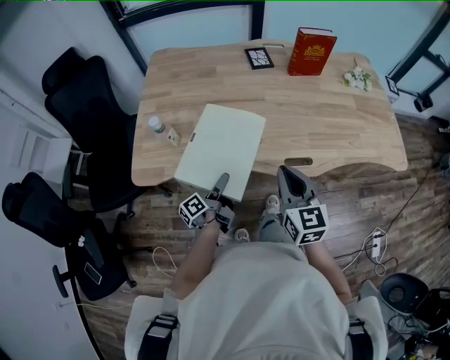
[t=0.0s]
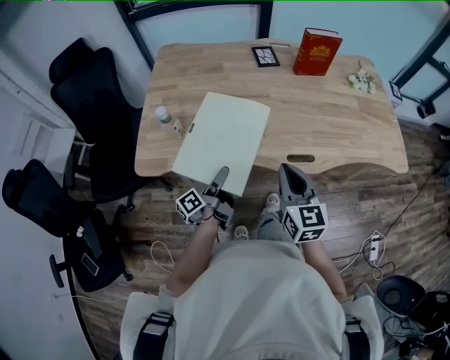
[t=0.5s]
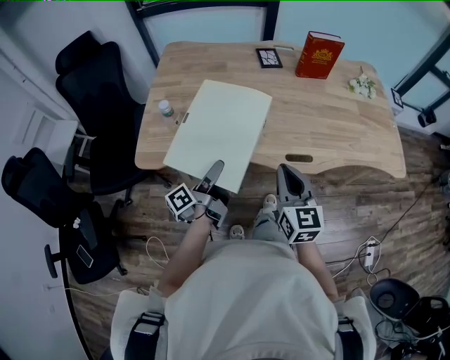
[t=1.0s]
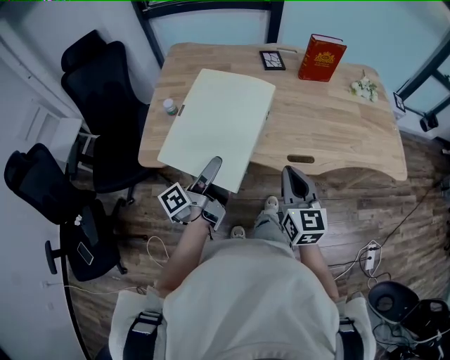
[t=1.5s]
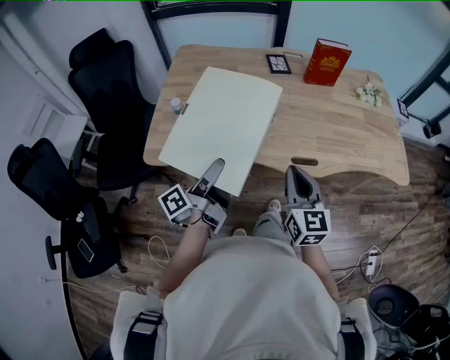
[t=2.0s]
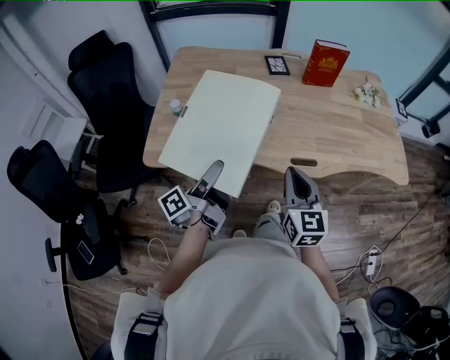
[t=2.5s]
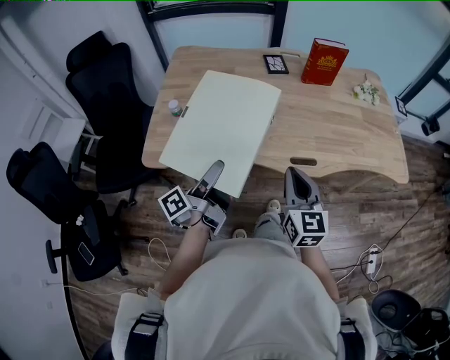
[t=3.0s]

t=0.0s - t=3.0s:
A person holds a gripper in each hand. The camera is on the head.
t=0.0s - t=1.5s: The left gripper heads upward, covering about 15 cm.
t=1.5s - t=3.0s: There are only small adjustments of the grippers.

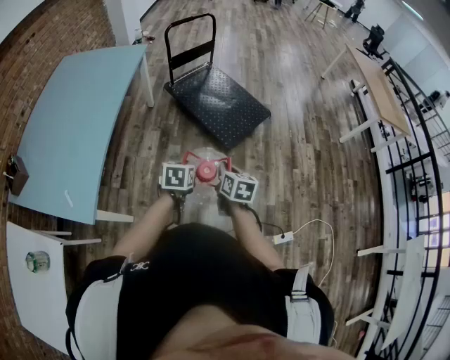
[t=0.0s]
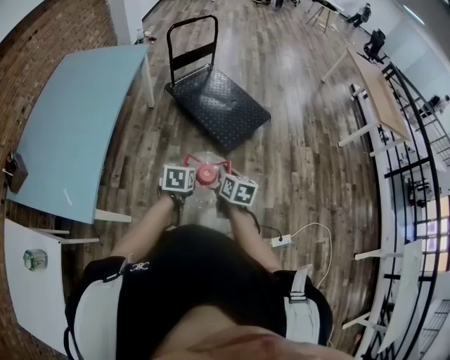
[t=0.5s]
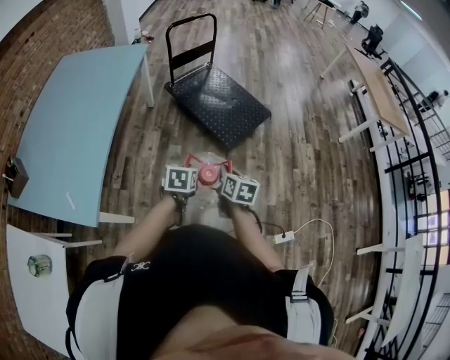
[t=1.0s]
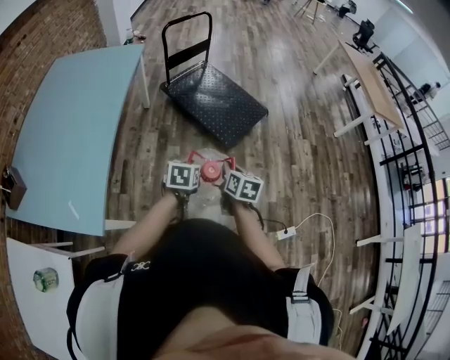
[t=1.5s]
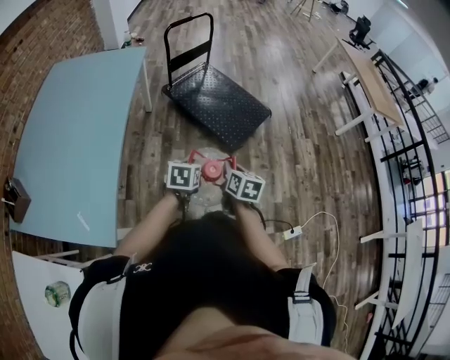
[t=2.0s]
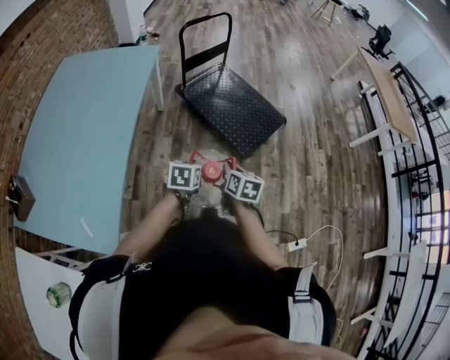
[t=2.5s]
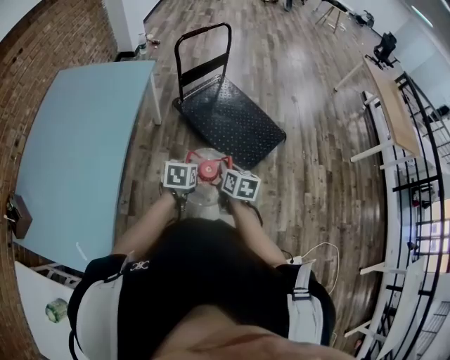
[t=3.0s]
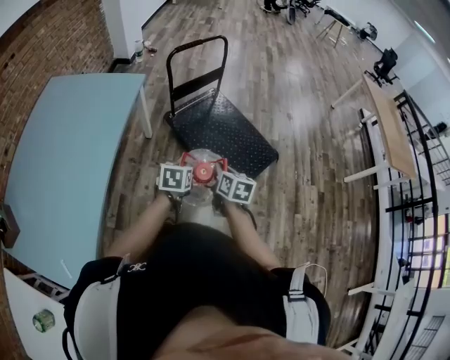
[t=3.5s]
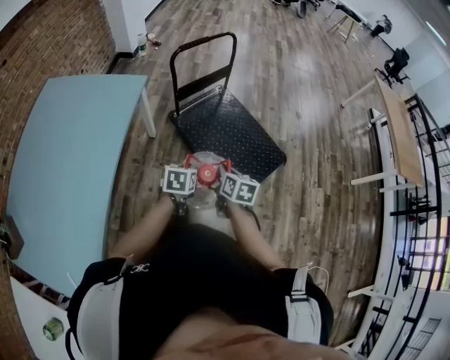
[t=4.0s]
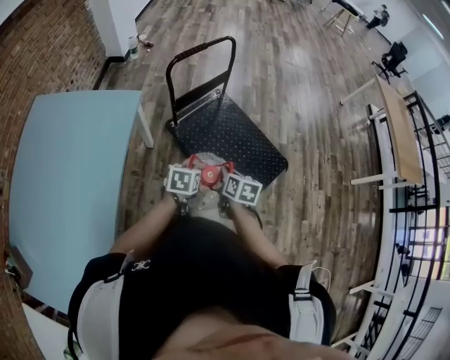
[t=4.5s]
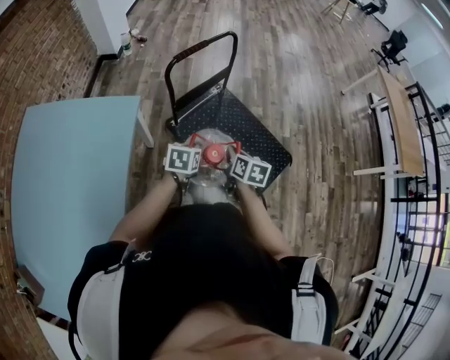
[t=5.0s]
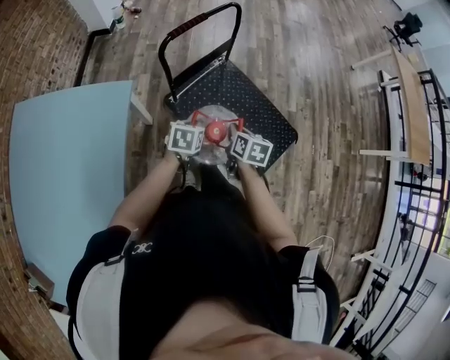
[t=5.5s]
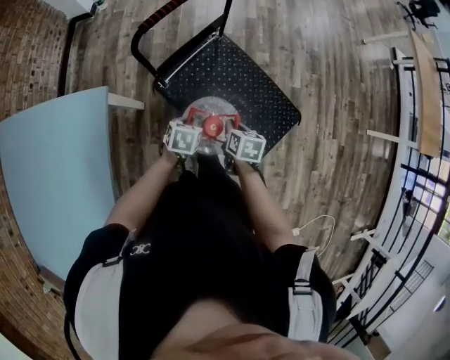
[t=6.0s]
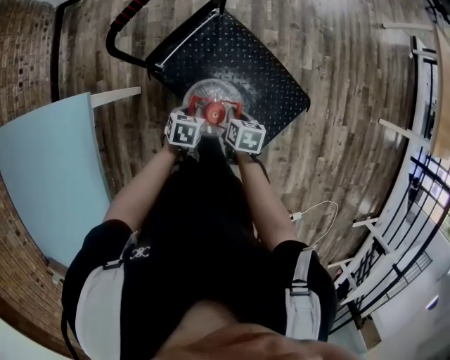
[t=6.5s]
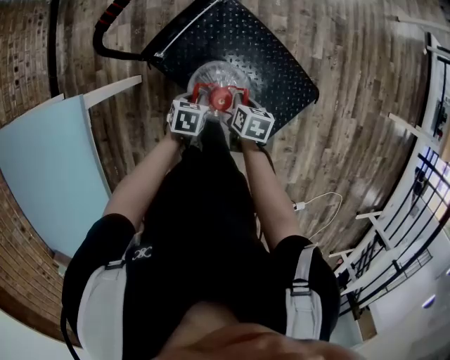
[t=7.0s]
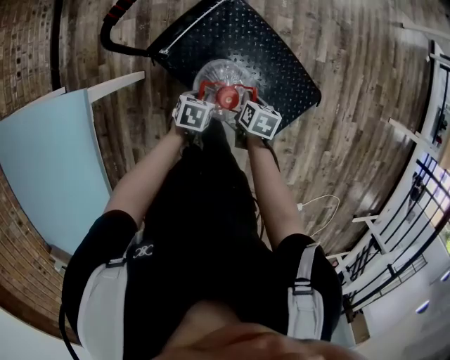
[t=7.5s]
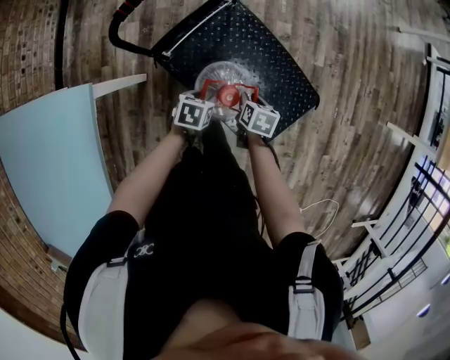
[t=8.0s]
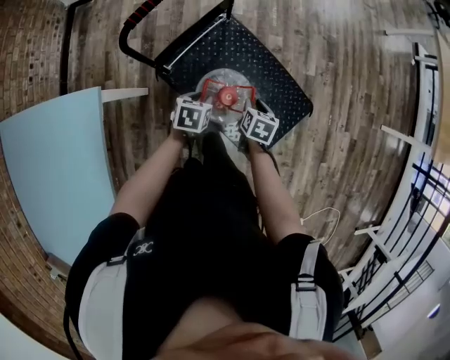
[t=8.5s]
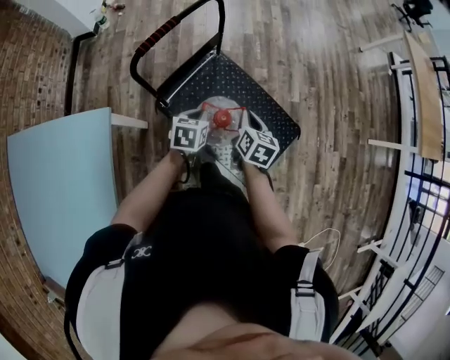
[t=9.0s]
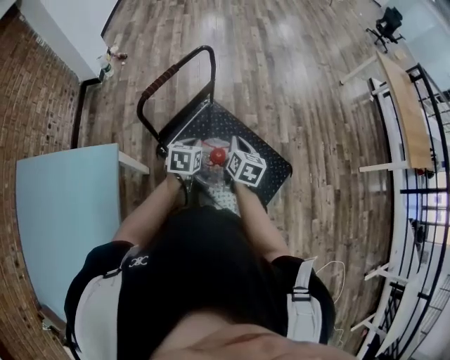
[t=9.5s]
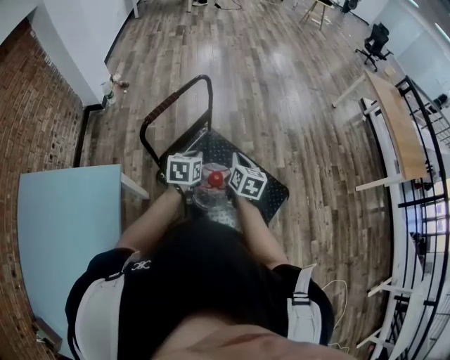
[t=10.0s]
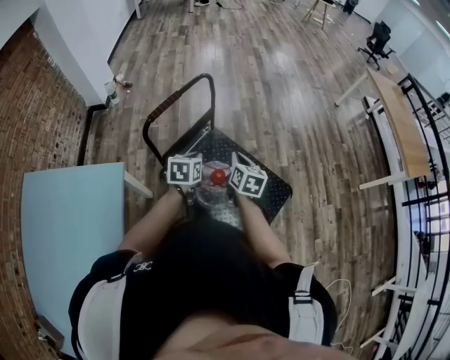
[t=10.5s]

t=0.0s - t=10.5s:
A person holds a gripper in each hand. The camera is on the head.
t=0.0s - t=2.0s: Both grippers move to the left, approximately 5 cm.
t=2.0s - t=4.0s: The grippers both shift forward by about 35 cm.
t=4.0s - t=6.5s: The grippers both shift forward and downward by some 35 cm. The right gripper rotates about 20 degrees. The left gripper rotates about 20 degrees.
t=6.5s - t=8.5s: The left gripper moves about 5 cm; the right gripper changes place by roughly 5 cm, and opens up.
t=8.5s - t=10.5s: Both grippers travel together upward, approximately 20 cm. The left gripper rotates some 20 degrees, and closes its fingers, while the right gripper swivels about 30 degrees, and closes.

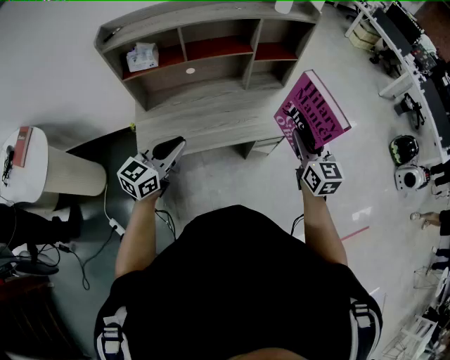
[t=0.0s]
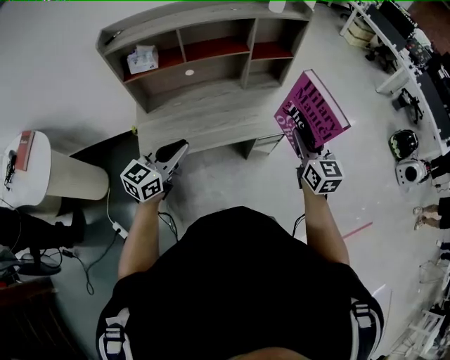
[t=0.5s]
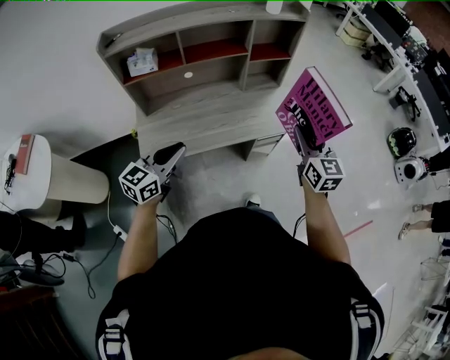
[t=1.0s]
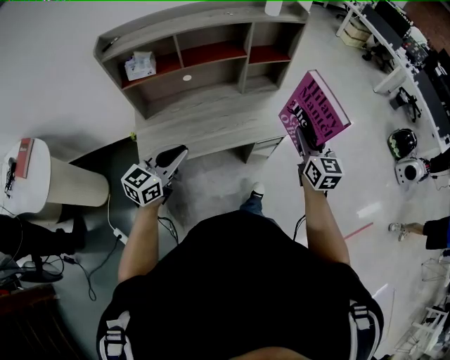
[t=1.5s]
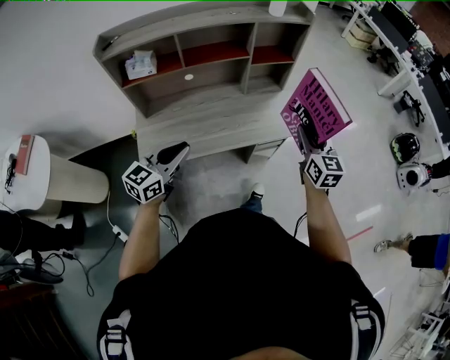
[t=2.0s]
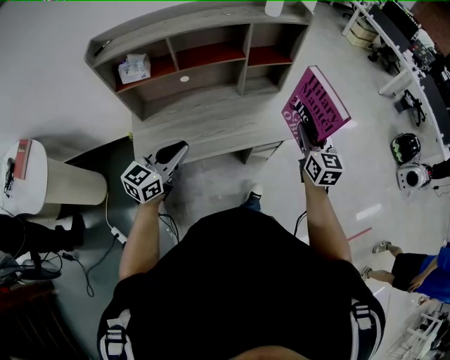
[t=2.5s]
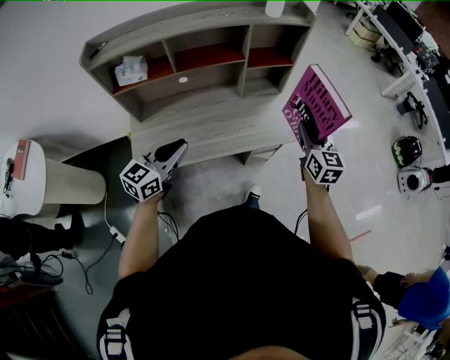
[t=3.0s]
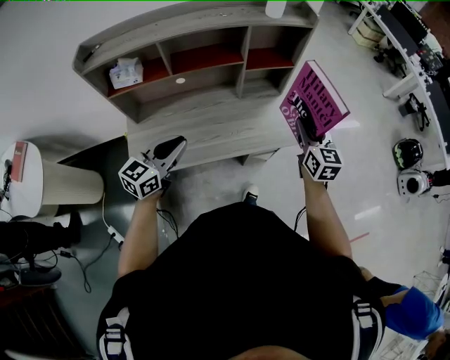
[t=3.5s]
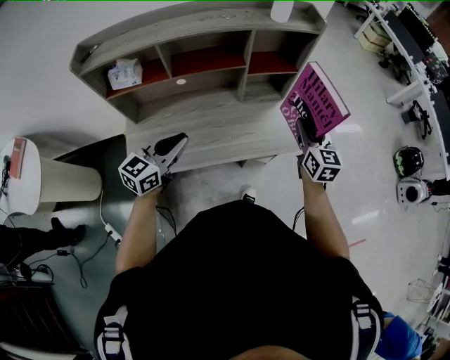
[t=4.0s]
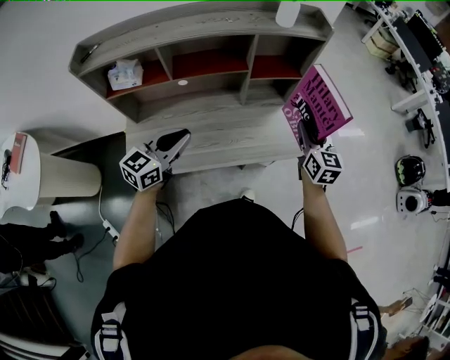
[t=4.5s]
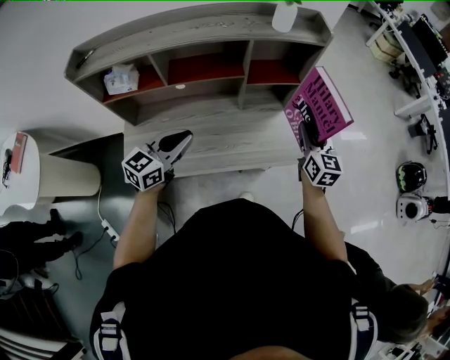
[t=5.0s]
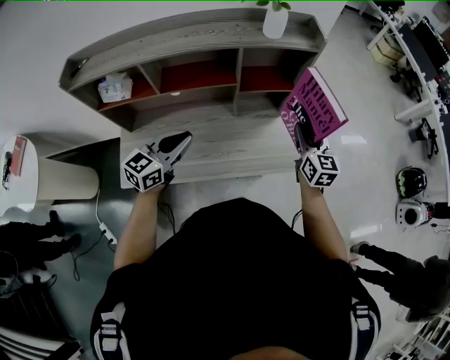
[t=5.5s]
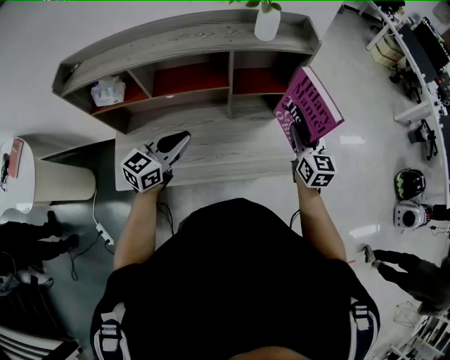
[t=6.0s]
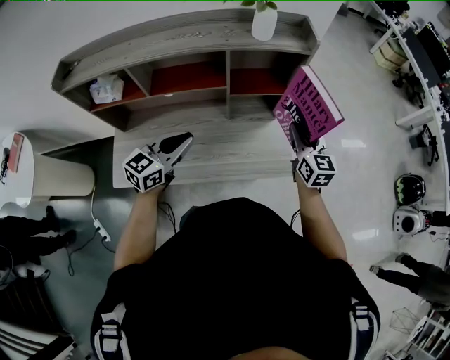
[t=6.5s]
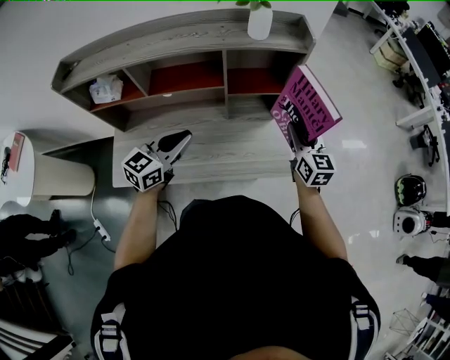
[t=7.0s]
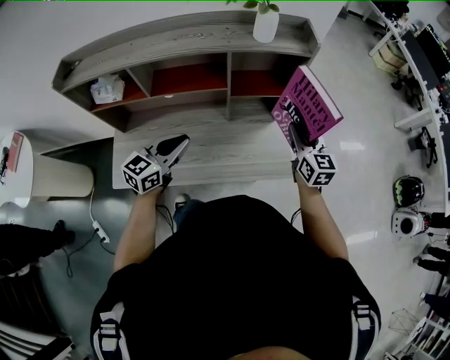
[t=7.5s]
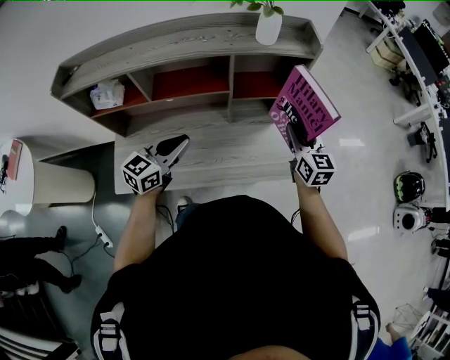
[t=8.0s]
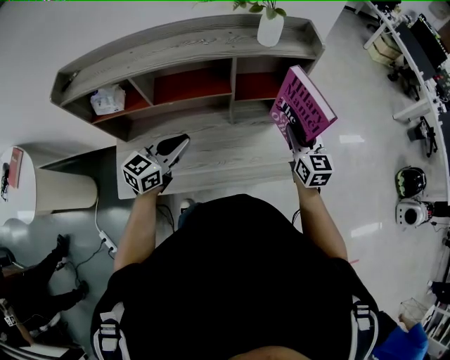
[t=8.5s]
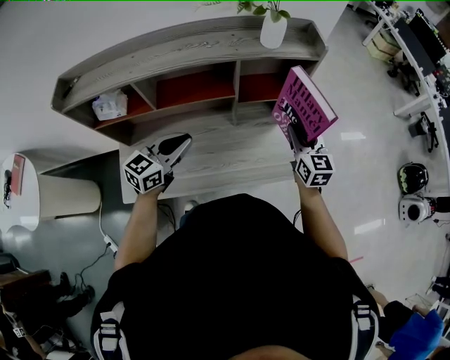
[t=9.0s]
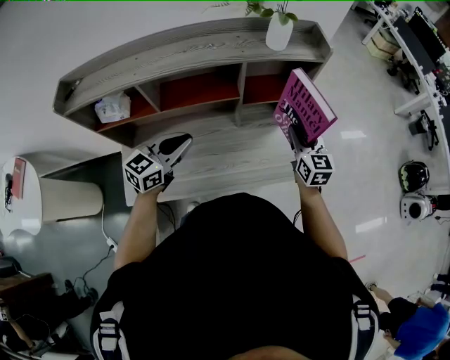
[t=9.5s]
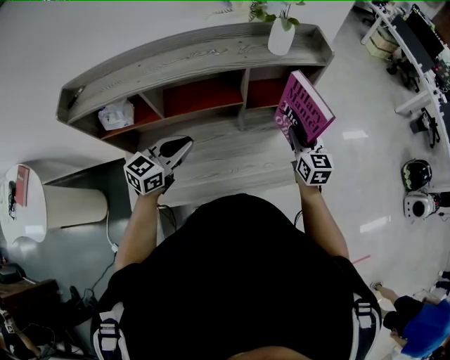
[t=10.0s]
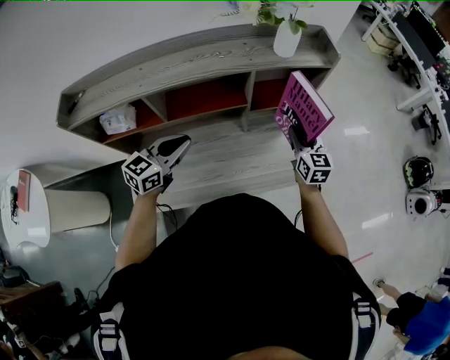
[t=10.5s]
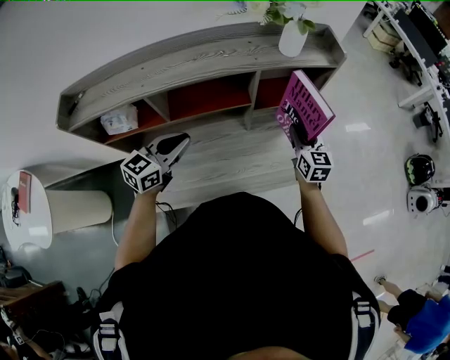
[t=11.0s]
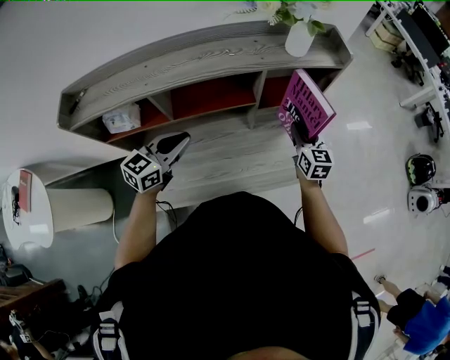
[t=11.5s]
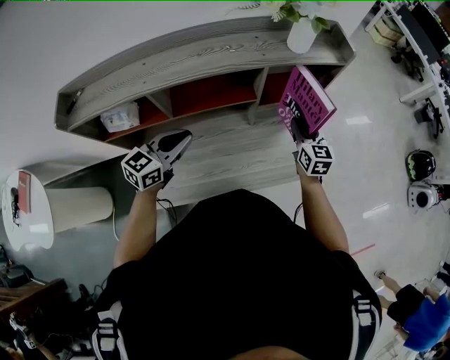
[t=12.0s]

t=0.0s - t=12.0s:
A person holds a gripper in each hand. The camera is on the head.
t=0.0s - t=2.0s: The grippers stay close to where they were, moving slightly.
t=2.0s - t=4.0s: Both grippers move forward, approximately 15 cm.
t=4.0s - t=6.0s: The left gripper shifts about 15 cm forward and to the right. Meanwhile the right gripper travels forward by about 15 cm.
t=6.0s - t=8.0s: There are only small adjustments of the grippers.
t=8.0s - t=10.0s: The right gripper shifts by roughly 5 cm. Meanwhile the left gripper goes approximately 5 cm to the left.
t=10.0s - t=12.0s: The left gripper travels to the left by some 5 cm, while the right gripper ends up about 5 cm from where it was.

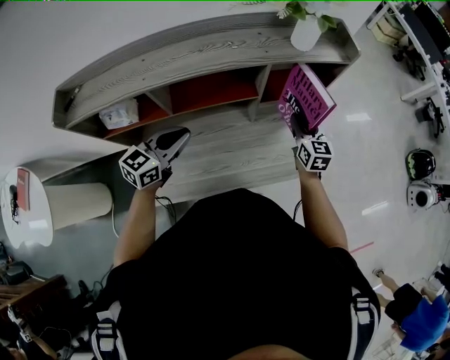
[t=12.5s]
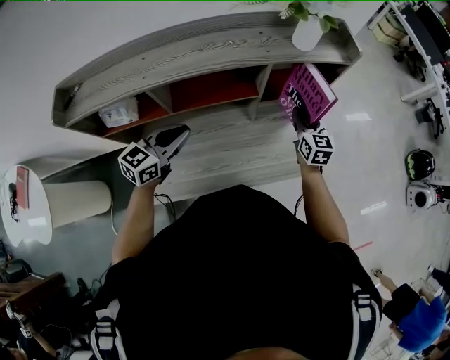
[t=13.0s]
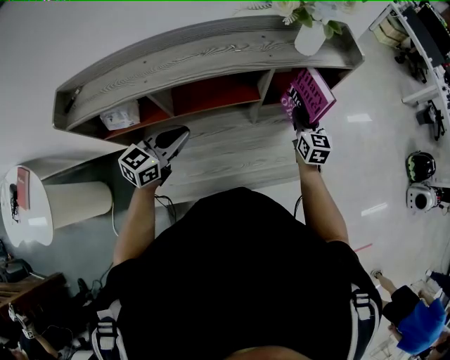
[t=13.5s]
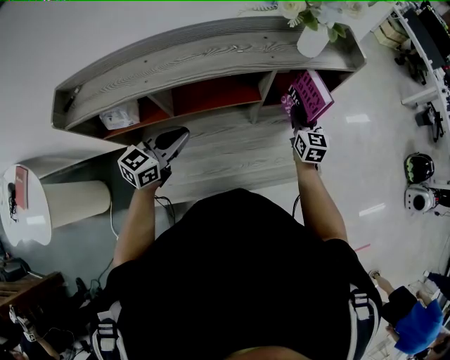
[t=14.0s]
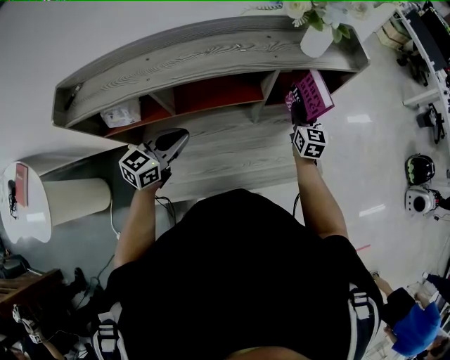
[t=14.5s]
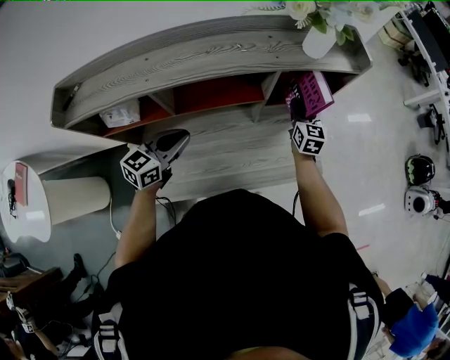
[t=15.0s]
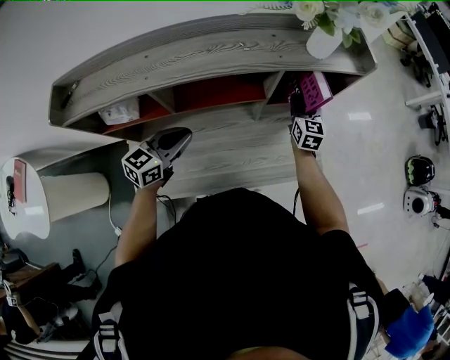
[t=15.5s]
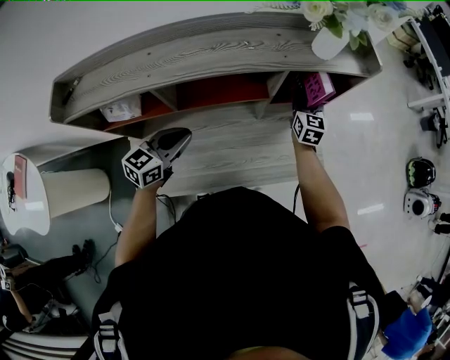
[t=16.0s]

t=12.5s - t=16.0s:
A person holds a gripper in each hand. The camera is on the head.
t=12.5s - t=14.5s: The right gripper moves forward, roughly 5 cm.
t=14.5s - t=16.0s: The right gripper moves about 5 cm.
